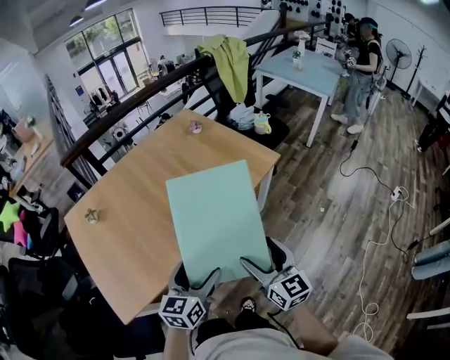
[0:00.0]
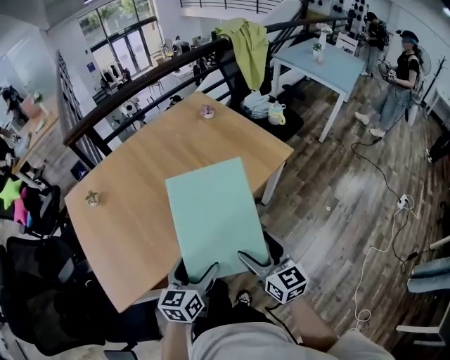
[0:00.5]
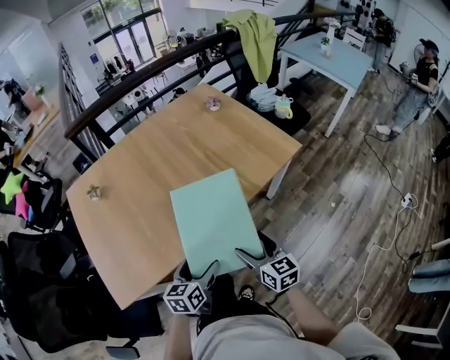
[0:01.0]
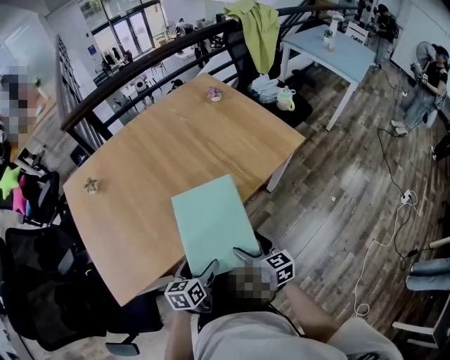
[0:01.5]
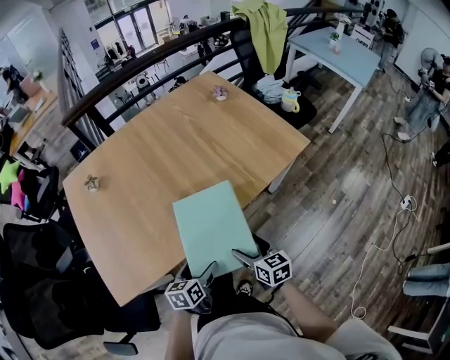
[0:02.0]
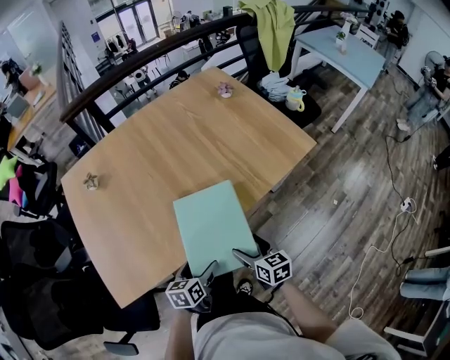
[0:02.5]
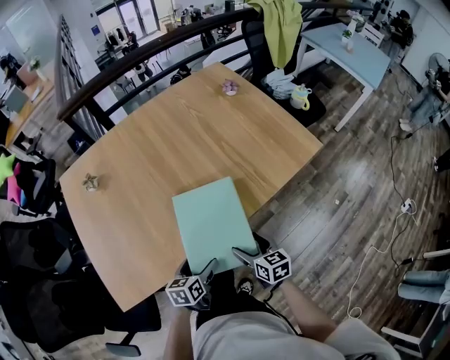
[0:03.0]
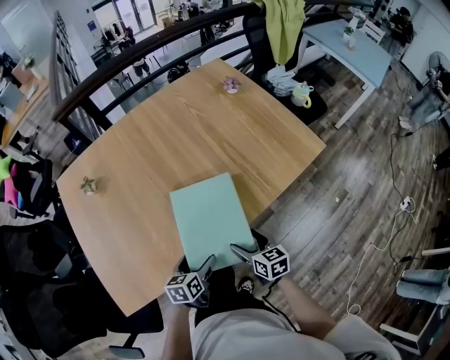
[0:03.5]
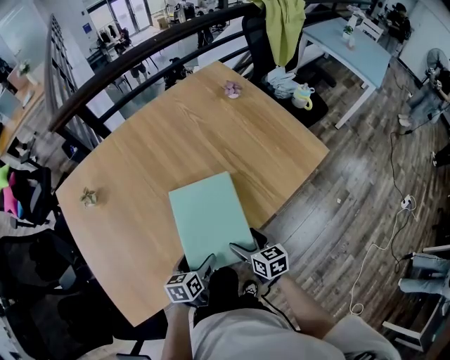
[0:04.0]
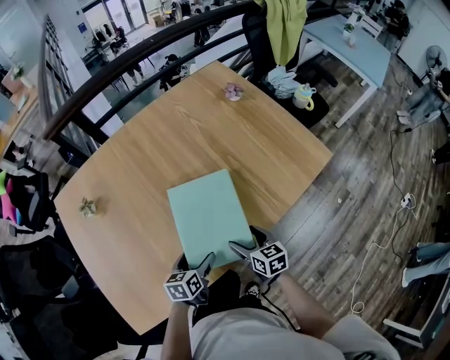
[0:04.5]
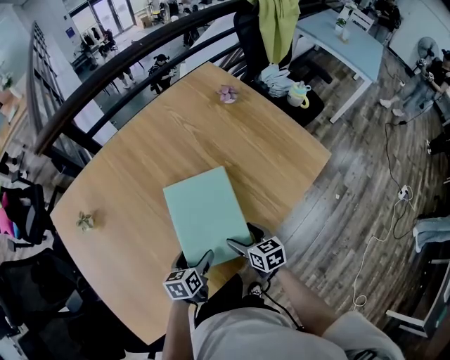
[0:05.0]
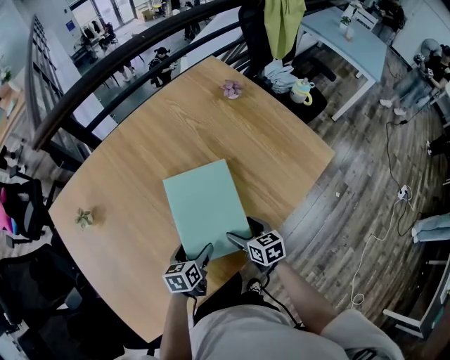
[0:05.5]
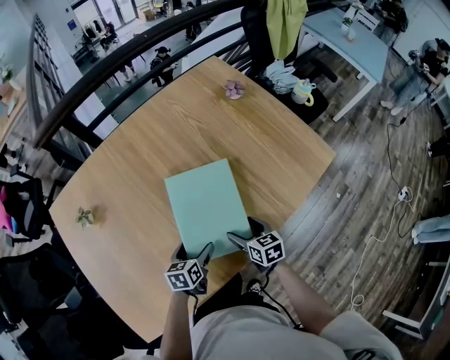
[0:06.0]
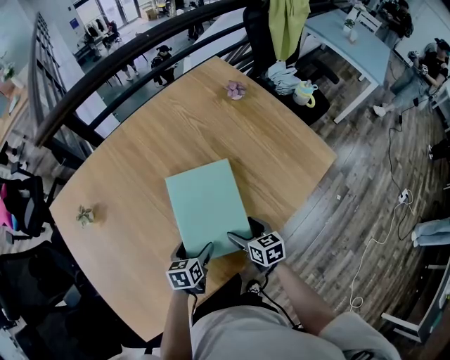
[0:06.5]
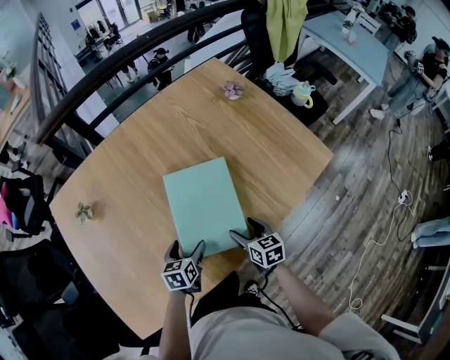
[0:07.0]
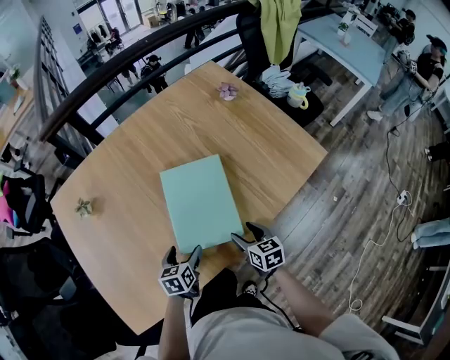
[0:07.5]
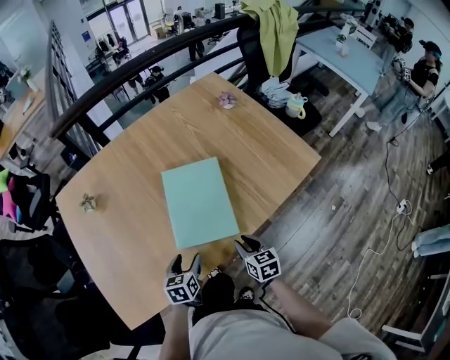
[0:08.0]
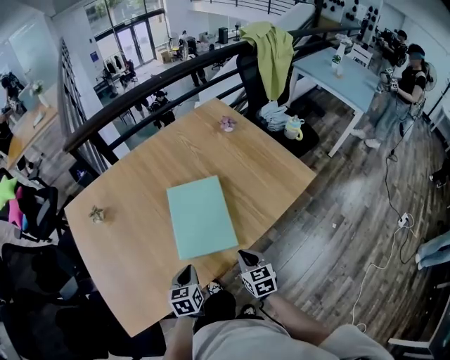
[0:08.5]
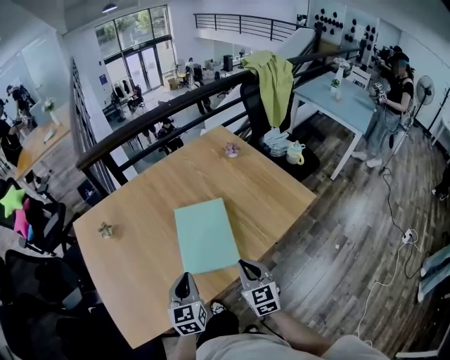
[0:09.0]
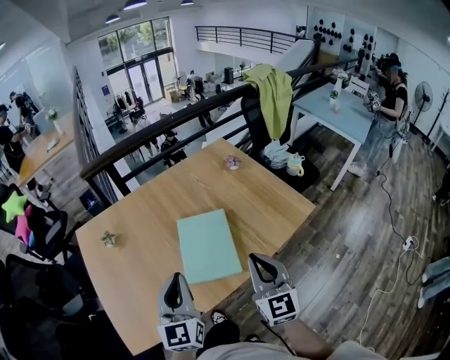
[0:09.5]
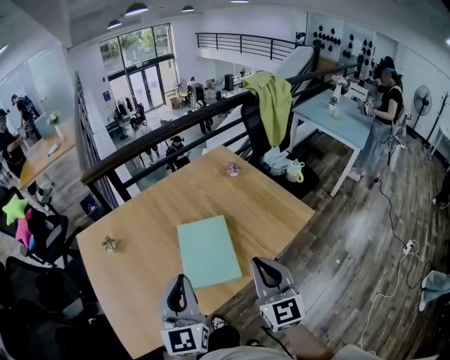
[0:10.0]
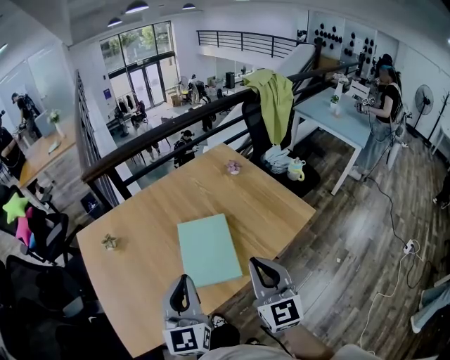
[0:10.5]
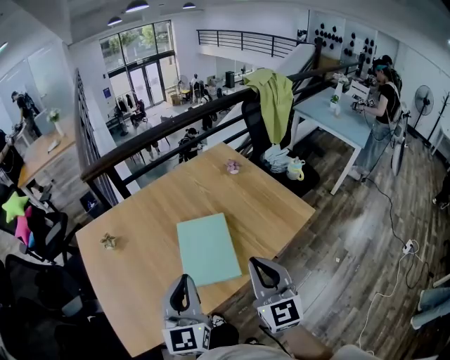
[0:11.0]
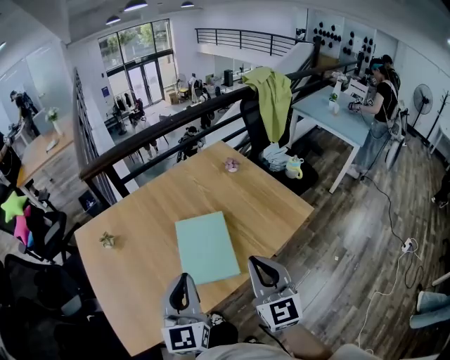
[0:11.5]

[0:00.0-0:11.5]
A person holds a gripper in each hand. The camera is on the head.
0:00.0 to 0:02.0: The two grippers go about 20 cm downward. The left gripper turns by some 30 degrees. Meanwhile the right gripper turns by about 30 degrees.
0:02.0 to 0:04.0: The left gripper is displaced forward by approximately 15 cm; the right gripper moves forward and to the left, about 15 cm.
0:04.0 to 0:06.0: The grippers both shift forward by roughly 10 cm.
0:06.0 to 0:07.5: The right gripper ends up approximately 5 cm from where it was.
0:07.5 to 0:09.5: The grippers both shift upward by some 35 cm. The right gripper tips its fingers upward by approximately 40 degrees, and closes its fingers; the left gripper angles its fingers upward, by approximately 40 degrees, and closes.
0:09.5 to 0:11.5: The grippers stay close to where they were, moving slightly.

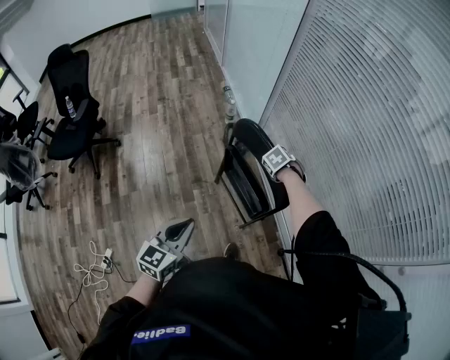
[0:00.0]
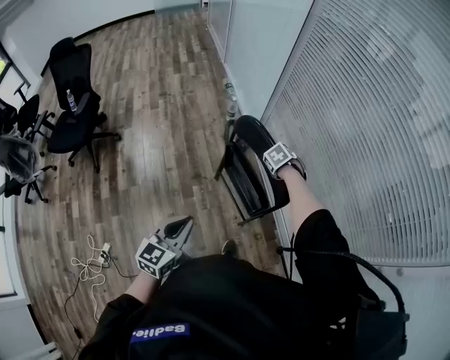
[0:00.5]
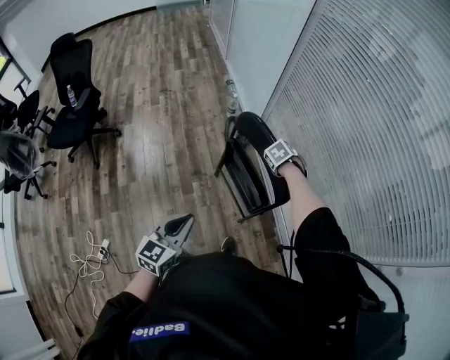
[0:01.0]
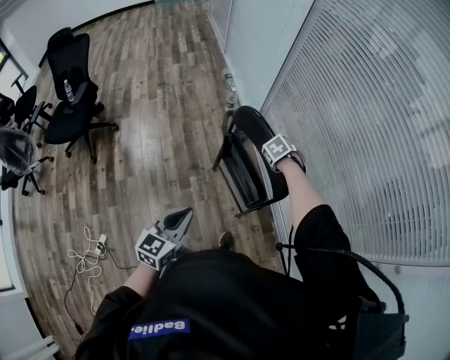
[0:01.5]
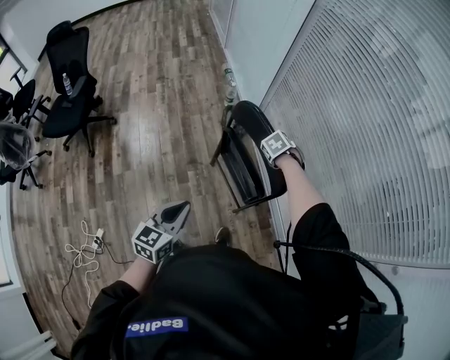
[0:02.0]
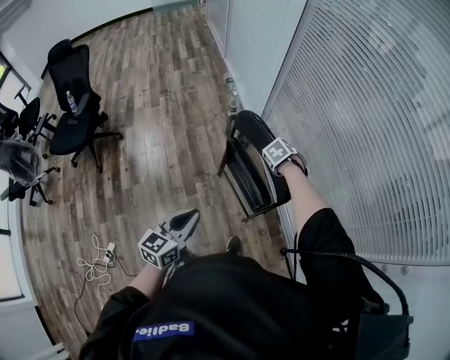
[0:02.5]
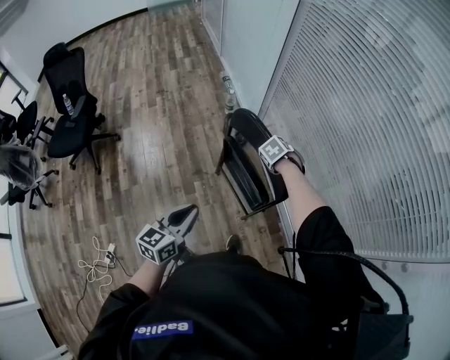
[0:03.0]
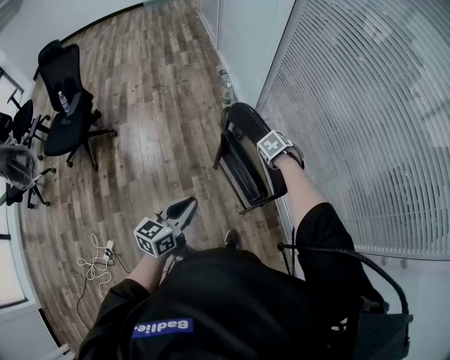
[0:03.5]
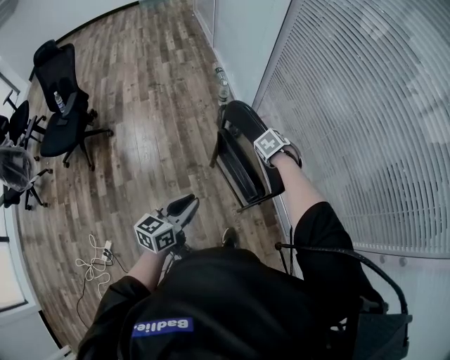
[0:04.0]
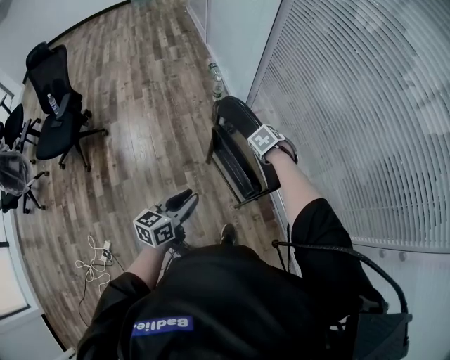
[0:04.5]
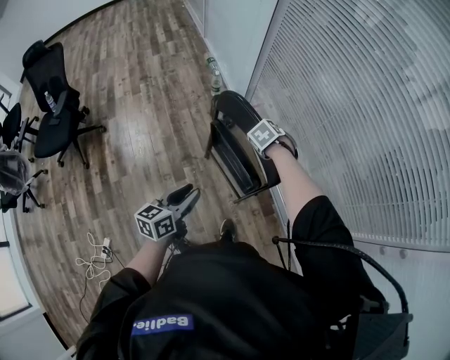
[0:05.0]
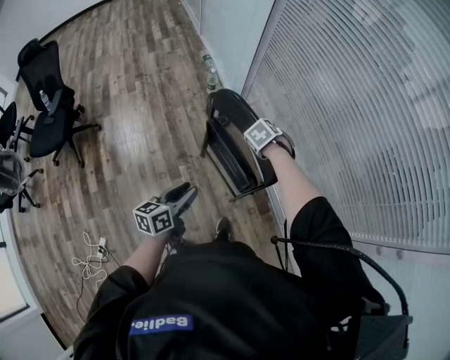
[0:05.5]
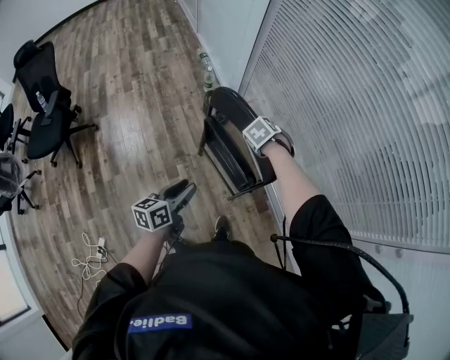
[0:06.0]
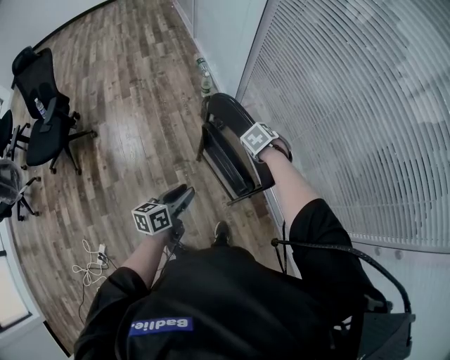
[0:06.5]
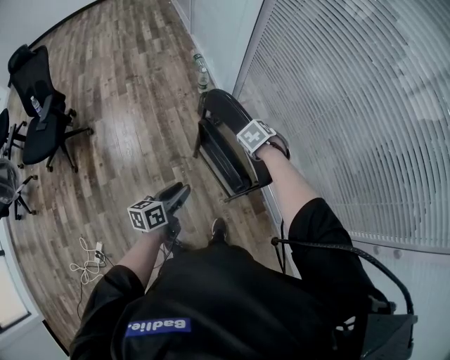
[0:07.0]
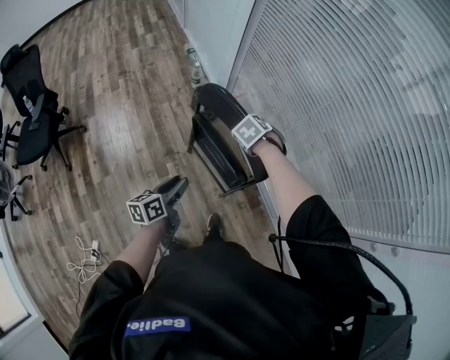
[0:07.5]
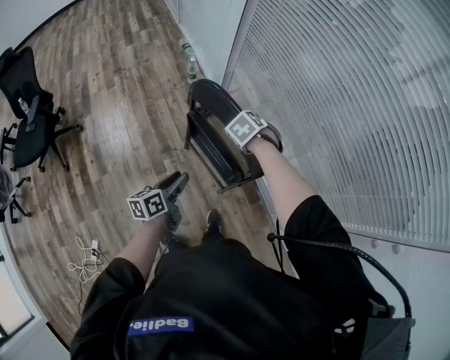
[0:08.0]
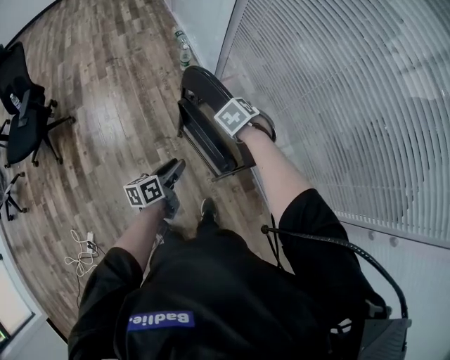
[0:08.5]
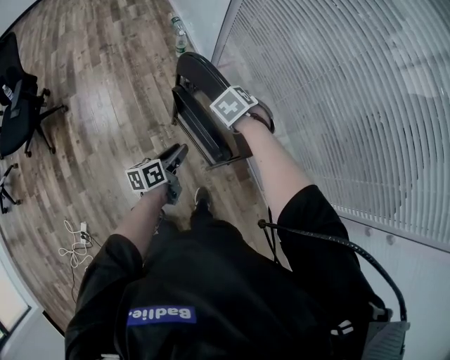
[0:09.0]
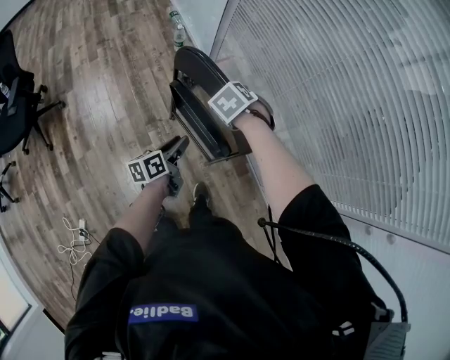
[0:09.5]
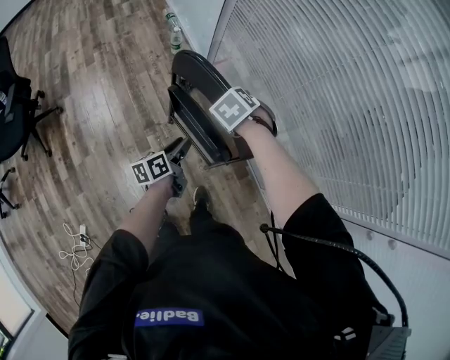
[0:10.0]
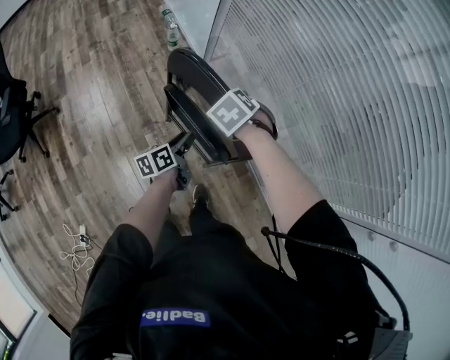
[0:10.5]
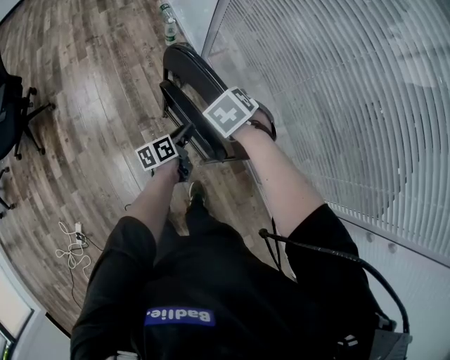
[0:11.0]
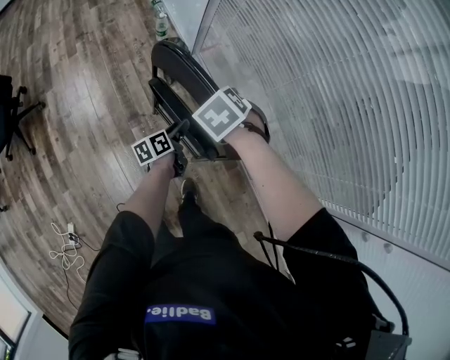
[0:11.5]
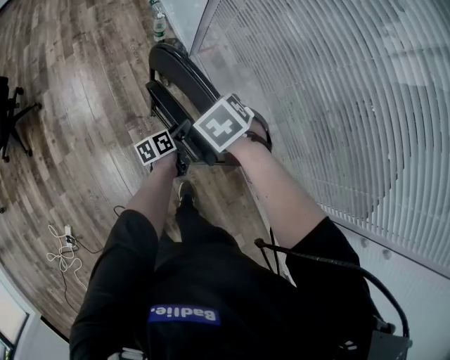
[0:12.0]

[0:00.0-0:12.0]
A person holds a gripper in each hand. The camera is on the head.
0:00.0 to 0:02.0: There are only small adjustments of the grippers.
0:02.0 to 0:04.0: The left gripper changes place by about 5 cm.
0:04.0 to 0:06.0: The left gripper moves downward, roughly 5 cm.
0:06.0 to 0:08.0: The left gripper changes place by about 5 cm.
0:08.0 to 0:10.0: The left gripper moves roughly 15 cm.
0:10.0 to 0:12.0: The left gripper moves downward, about 10 cm.

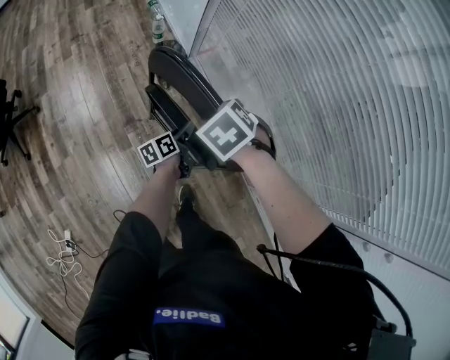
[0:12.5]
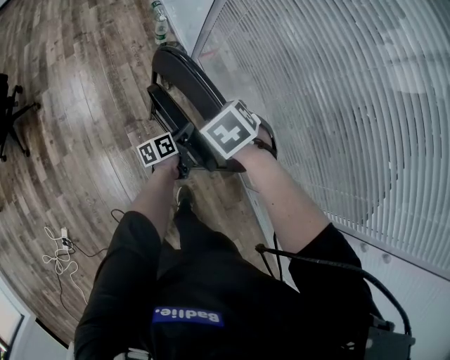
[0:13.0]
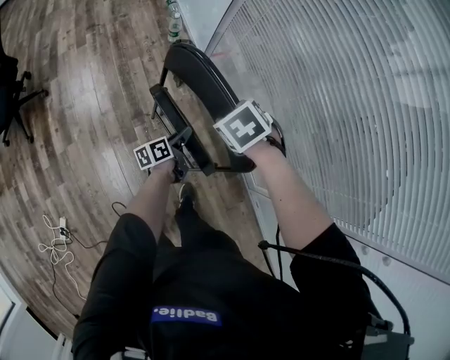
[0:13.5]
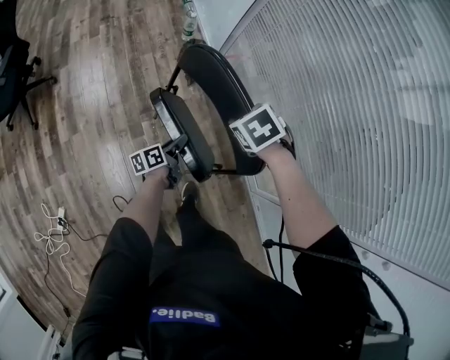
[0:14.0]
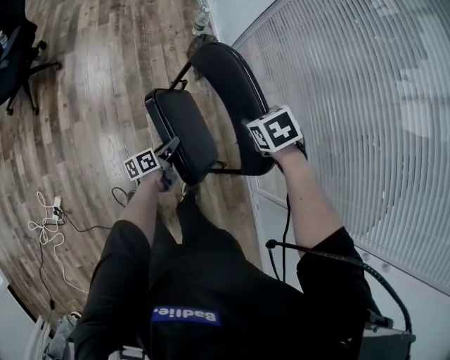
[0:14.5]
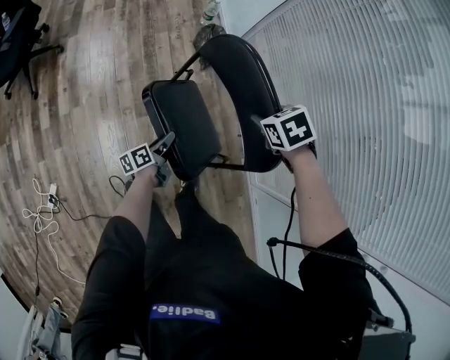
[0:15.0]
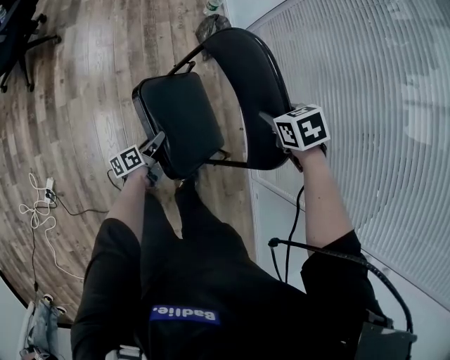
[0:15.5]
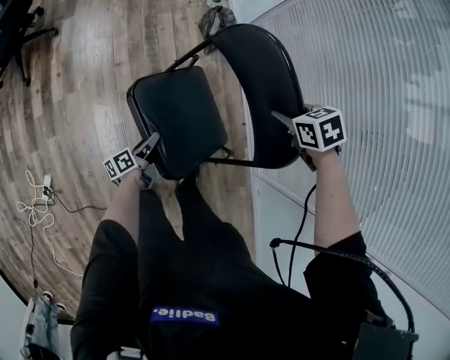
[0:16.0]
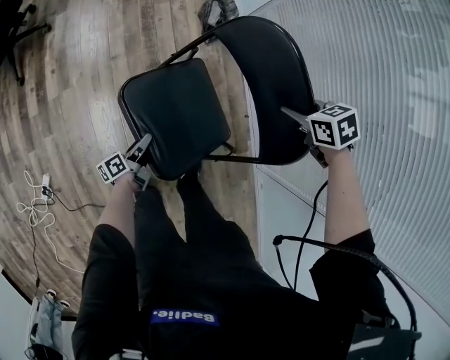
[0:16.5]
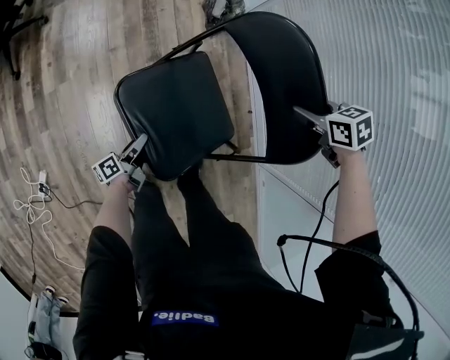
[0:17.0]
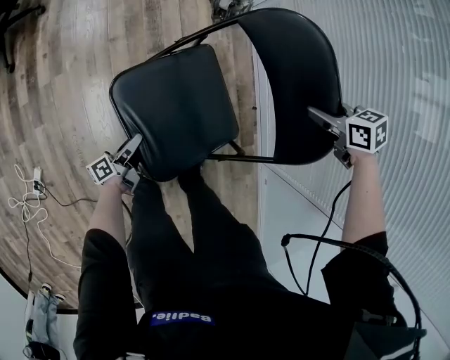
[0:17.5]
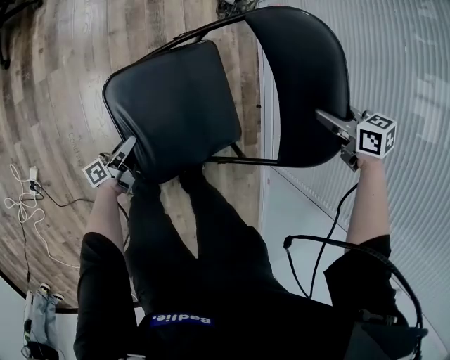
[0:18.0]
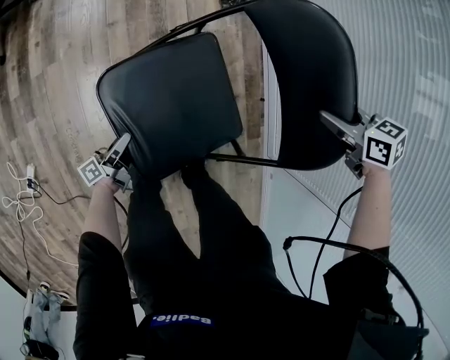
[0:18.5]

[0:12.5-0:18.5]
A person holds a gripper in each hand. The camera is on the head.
0:12.5 to 0:14.5: The left gripper changes place by some 20 cm. The right gripper ends up roughly 5 cm from where it was.
0:14.5 to 0:16.5: The right gripper goes approximately 5 cm downward; the left gripper changes place by roughly 20 cm.
0:16.5 to 0:18.5: The left gripper goes some 15 cm downward and to the left. The right gripper heads downward, covering about 10 cm.
